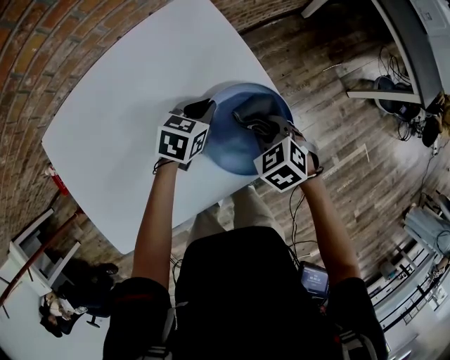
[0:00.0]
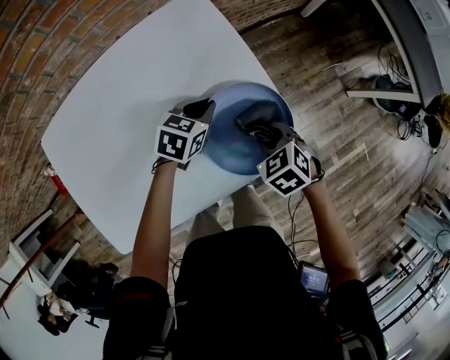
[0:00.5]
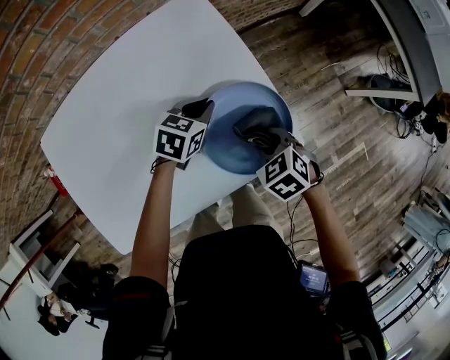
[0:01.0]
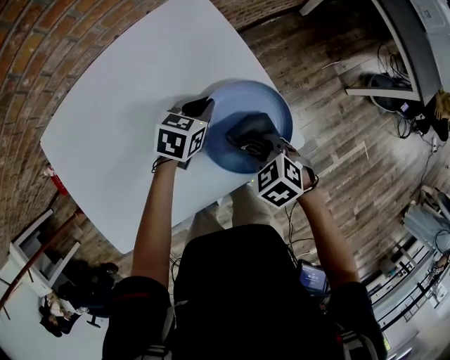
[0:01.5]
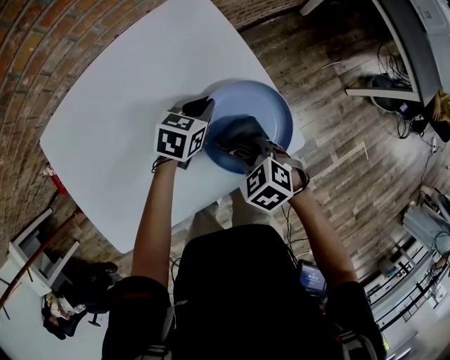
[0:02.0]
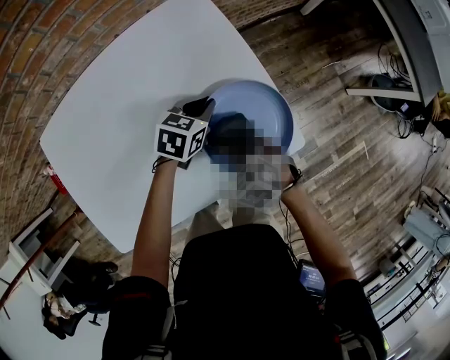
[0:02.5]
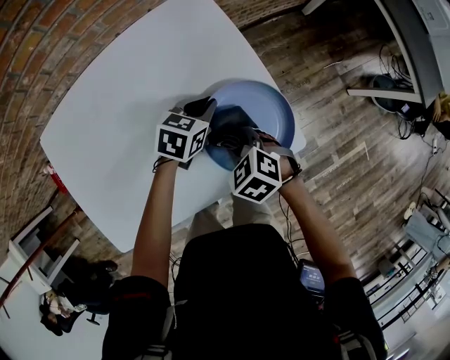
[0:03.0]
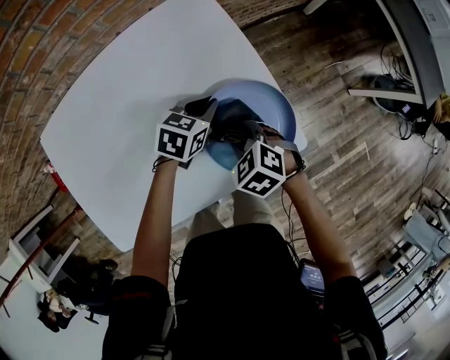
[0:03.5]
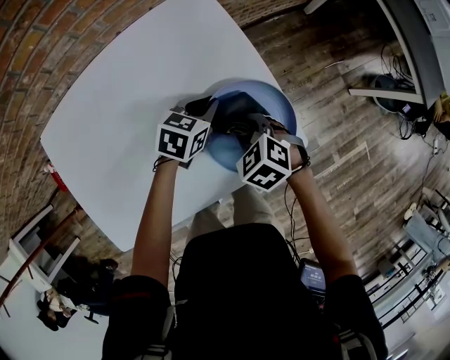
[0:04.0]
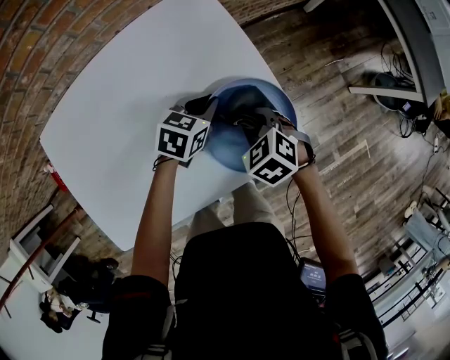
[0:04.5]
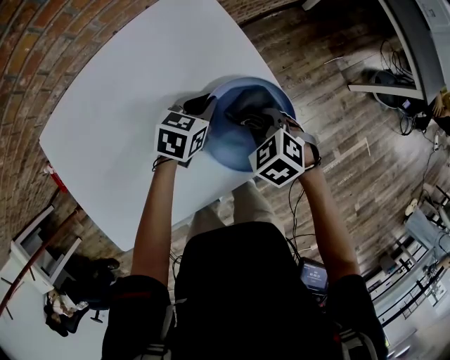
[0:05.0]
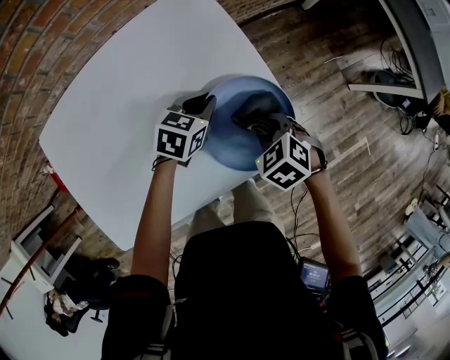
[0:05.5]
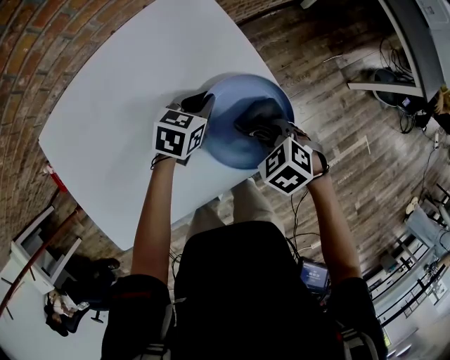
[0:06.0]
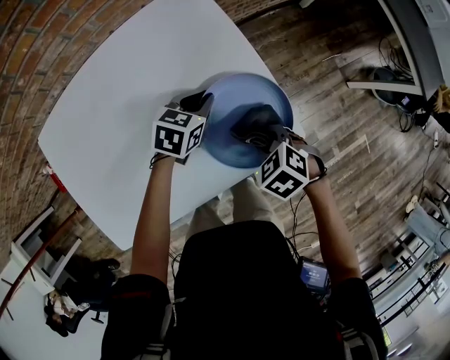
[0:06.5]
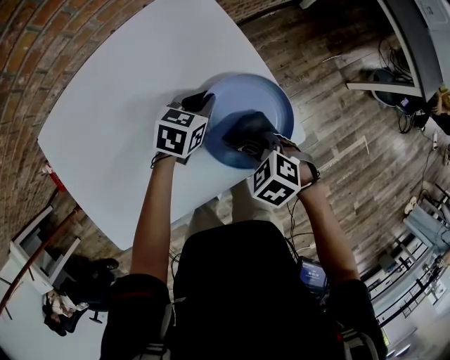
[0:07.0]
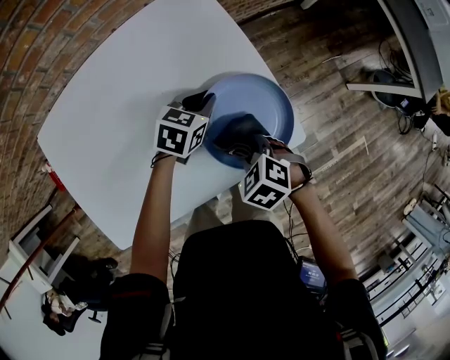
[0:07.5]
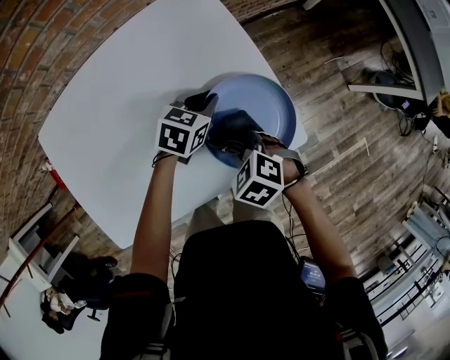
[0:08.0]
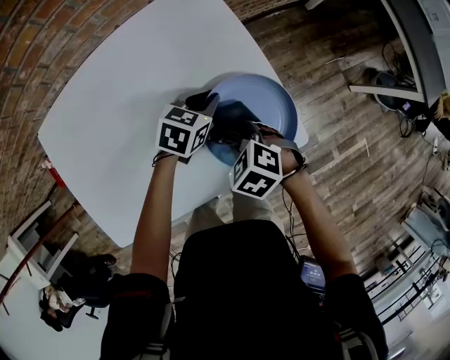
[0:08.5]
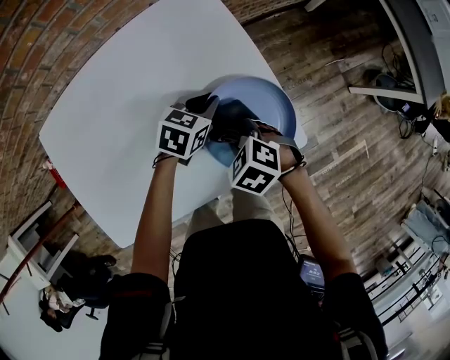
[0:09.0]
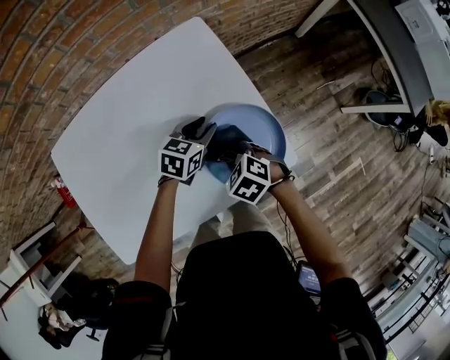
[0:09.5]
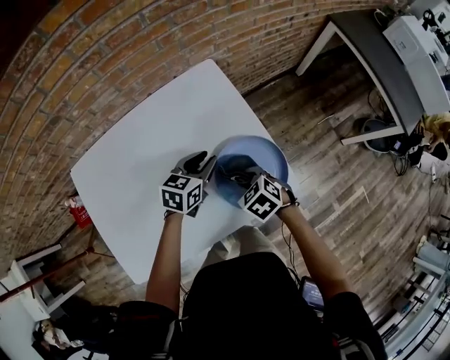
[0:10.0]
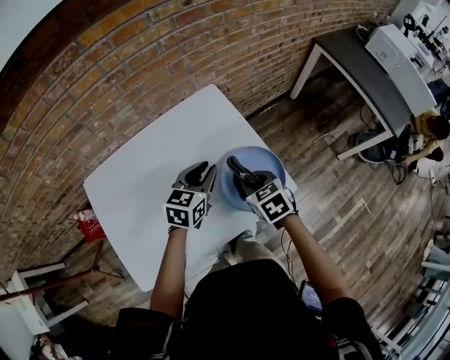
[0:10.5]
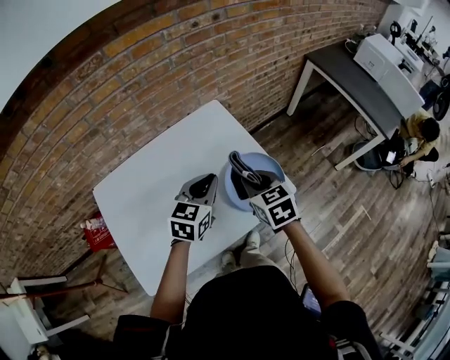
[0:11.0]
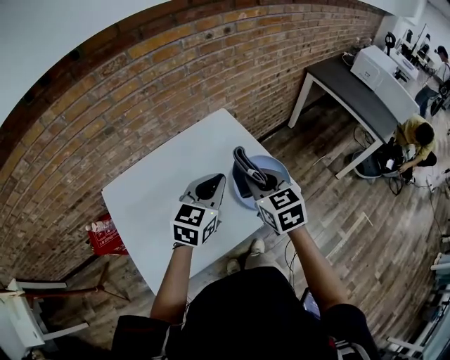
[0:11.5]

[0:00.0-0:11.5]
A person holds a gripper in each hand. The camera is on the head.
0:00.0 to 0:02.0: The right gripper goes some 5 cm backward.
0:02.0 to 0:04.0: The right gripper heads forward, covering about 5 cm.
0:04.0 to 0:06.0: The right gripper is displaced to the right by some 5 cm.
0:06.0 to 0:07.5: The right gripper goes approximately 5 cm to the left.
0:07.5 to 0:09.5: The left gripper opens its fingers. The right gripper shifts by about 5 cm.
0:09.5 to 0:11.5: The left gripper heads upward and backward, covering about 30 cm, swivels about 30 degrees, and closes, while the right gripper travels upward by about 30 cm, and angles its fingers upward, by about 40 degrees.

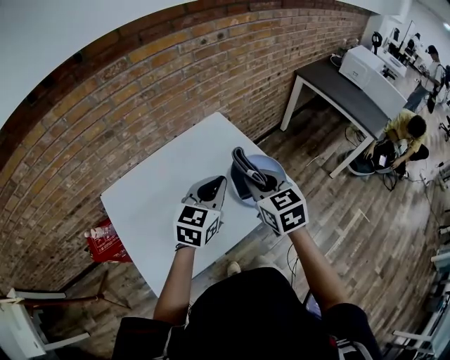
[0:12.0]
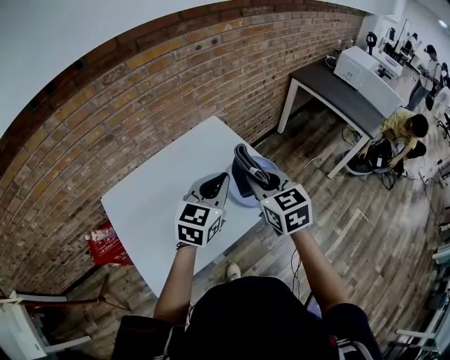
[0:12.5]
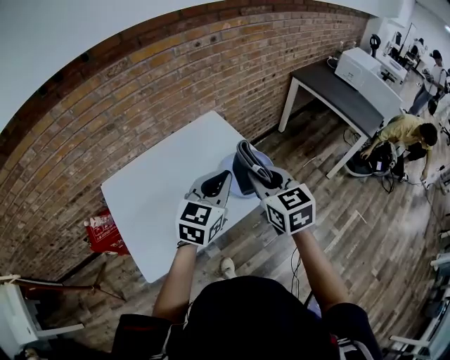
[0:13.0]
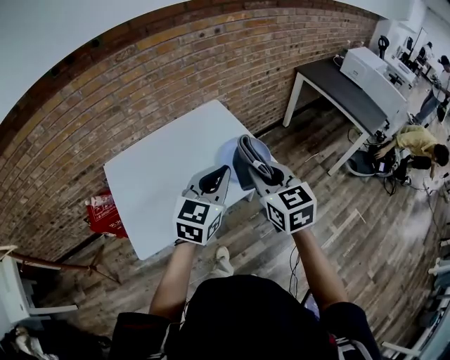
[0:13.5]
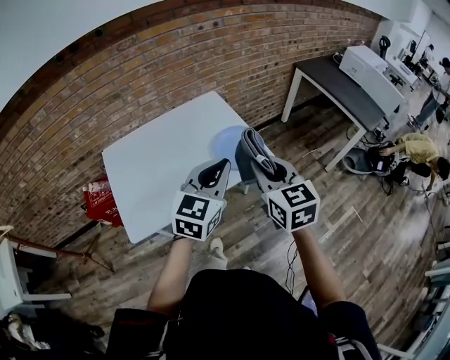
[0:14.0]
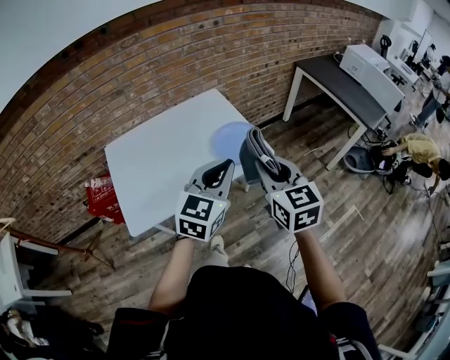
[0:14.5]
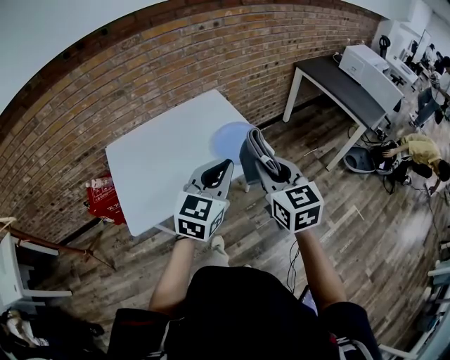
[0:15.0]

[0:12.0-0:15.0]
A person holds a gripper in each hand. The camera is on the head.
0:12.0 to 0:13.5: The two grippers go some 15 cm backward, to the right and upward.
0:13.5 to 0:15.0: The left gripper shifts some 10 cm backward. The right gripper heads backward and to the right, covering roughly 10 cm.

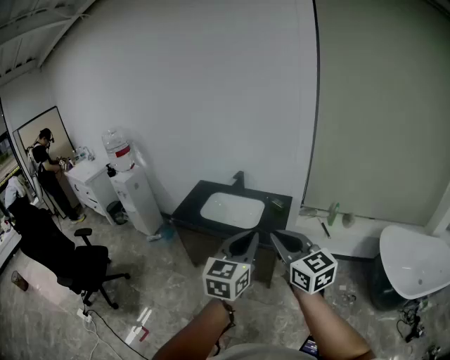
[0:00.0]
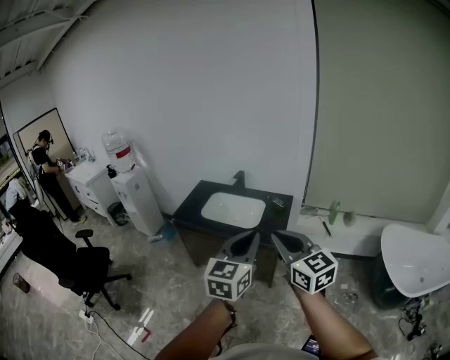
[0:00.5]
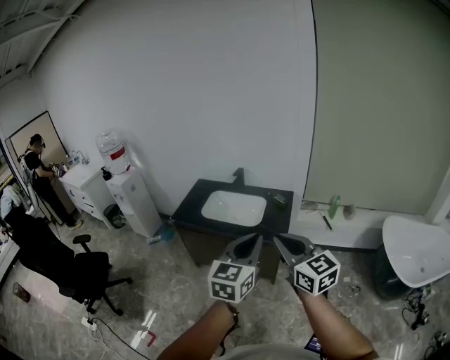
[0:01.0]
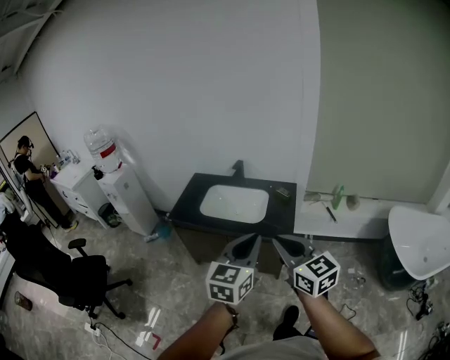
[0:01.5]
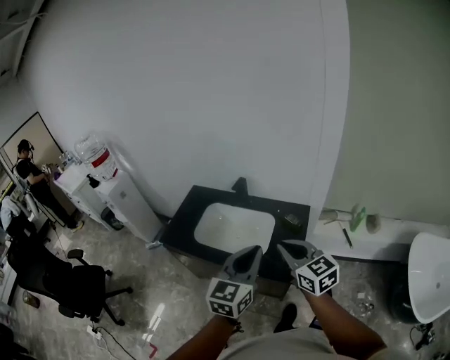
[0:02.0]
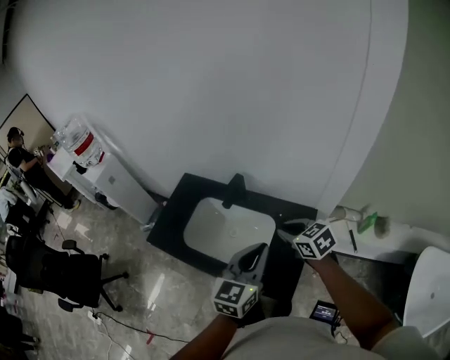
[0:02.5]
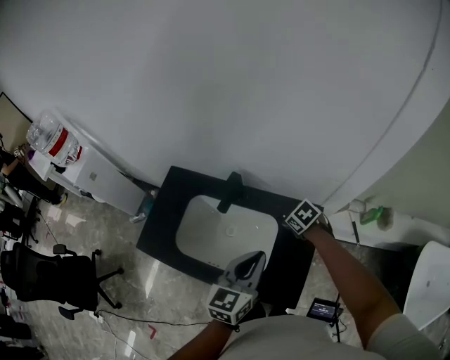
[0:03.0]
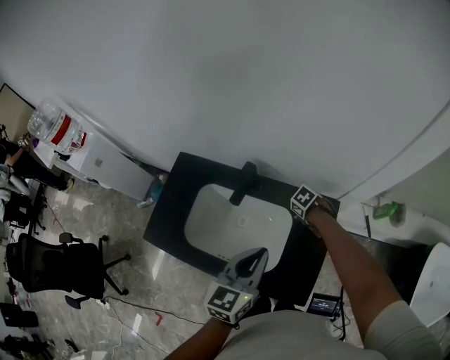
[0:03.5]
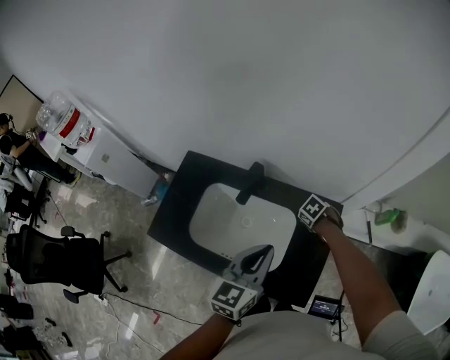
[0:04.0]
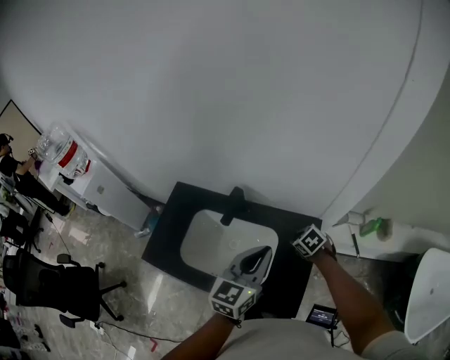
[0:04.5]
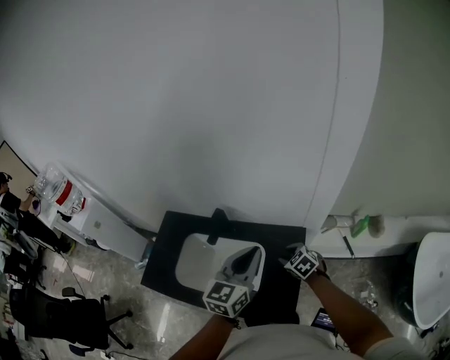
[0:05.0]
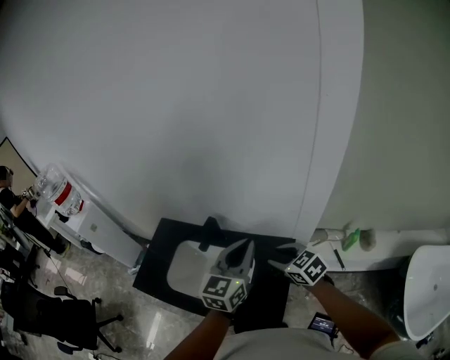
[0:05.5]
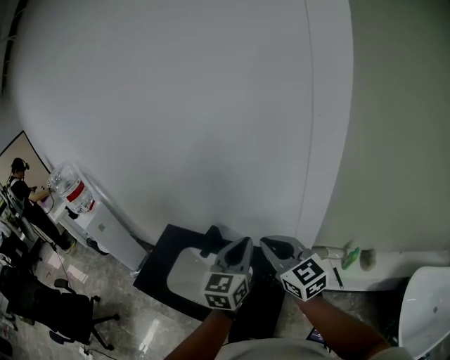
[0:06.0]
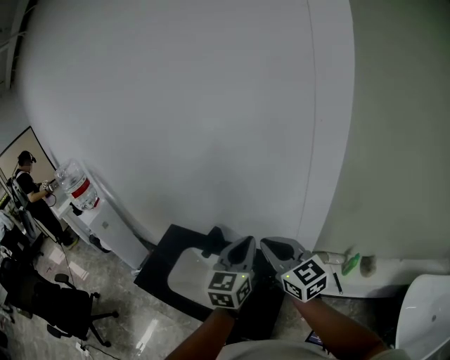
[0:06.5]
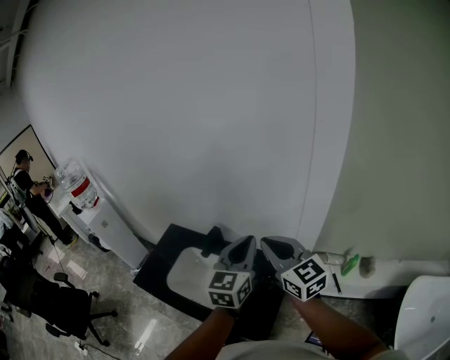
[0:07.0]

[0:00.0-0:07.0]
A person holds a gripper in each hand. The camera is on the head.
0:00.0 to 0:02.0: Both grippers travel together forward, approximately 35 cm.
0:02.0 to 0:03.5: The right gripper goes some 40 cm downward, points its fingers roughly 60 degrees further downward, and opens, while the left gripper shifts by some 35 cm.
0:03.5 to 0:05.0: Both grippers travel together upward, about 10 cm. The right gripper turns by roughly 40 degrees.
0:05.0 to 0:07.0: The right gripper moves upward, some 35 cm, tilts its fingers roughly 50 degrees upward, and closes up. The left gripper moves upward, approximately 10 cm.

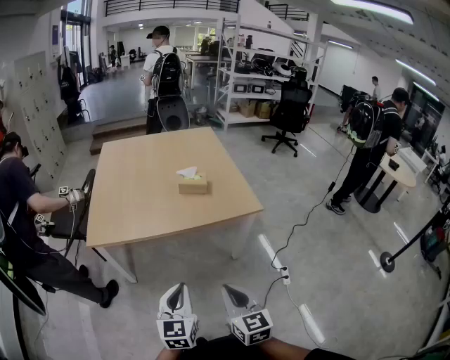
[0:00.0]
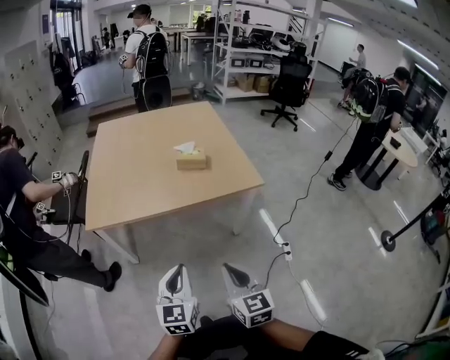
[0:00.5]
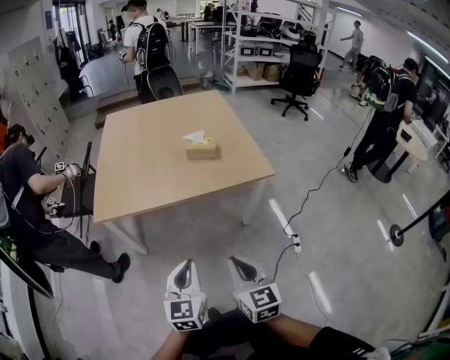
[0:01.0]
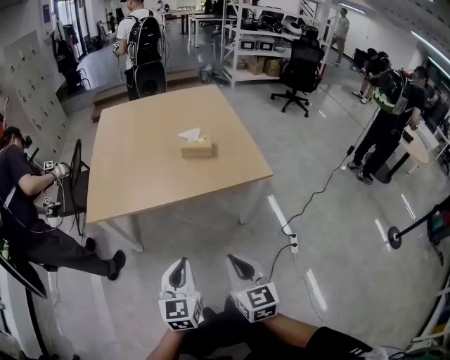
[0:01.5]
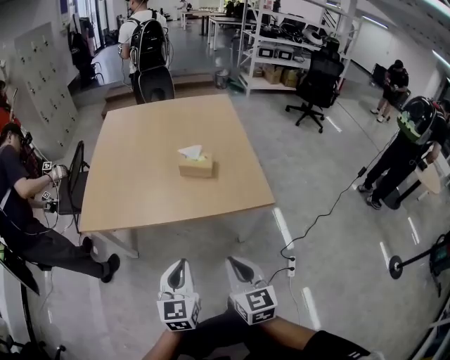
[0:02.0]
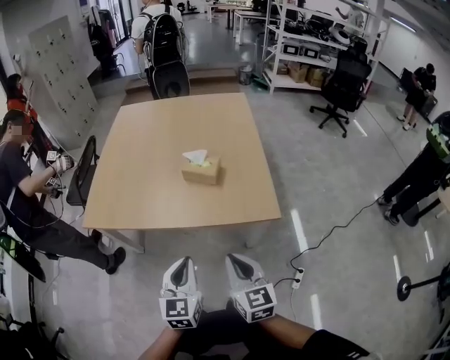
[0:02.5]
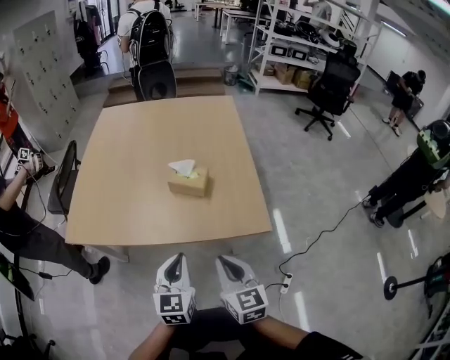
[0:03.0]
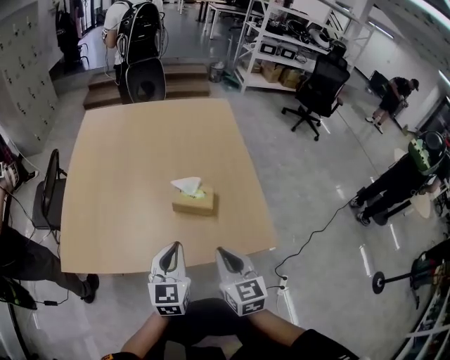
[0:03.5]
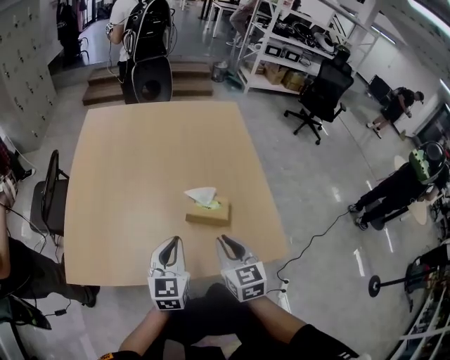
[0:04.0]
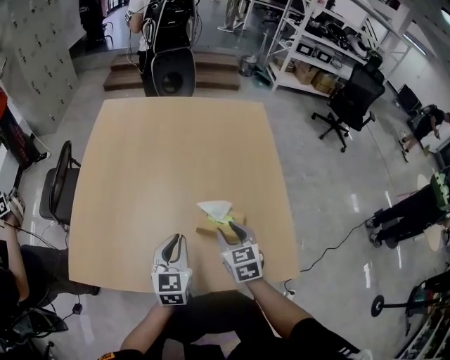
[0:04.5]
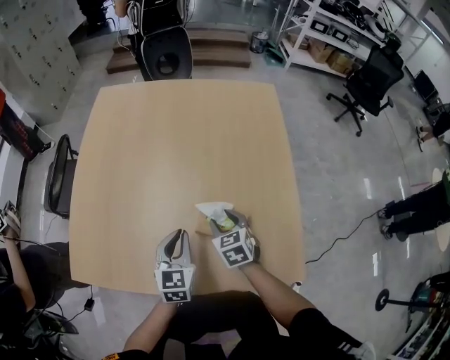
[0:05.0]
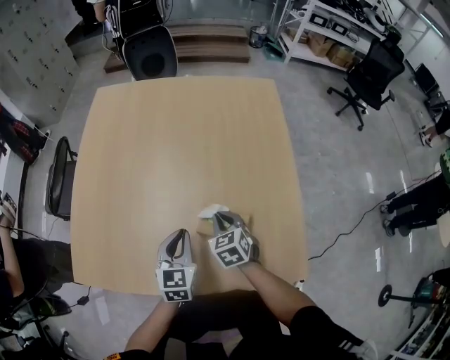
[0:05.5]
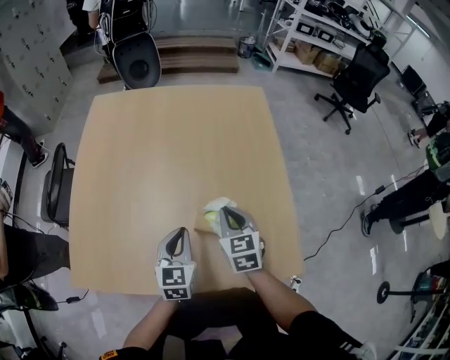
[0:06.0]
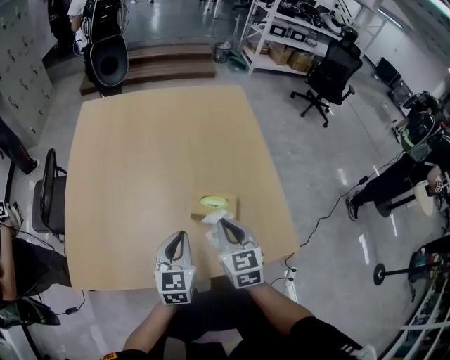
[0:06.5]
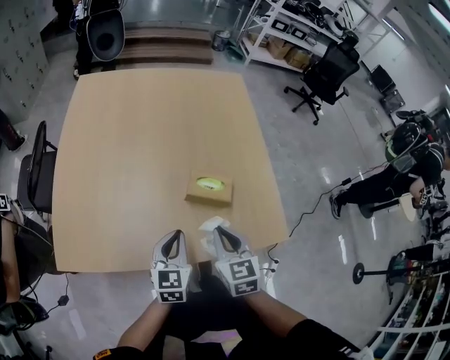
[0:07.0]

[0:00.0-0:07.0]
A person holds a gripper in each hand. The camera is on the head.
0:00.0 to 0:02.0: The two grippers go roughly 15 cm forward and to the right.
0:02.0 to 0:03.5: The two grippers go approximately 25 cm forward.
0:03.5 to 0:05.0: The left gripper shifts approximately 15 cm forward and downward; the right gripper shifts roughly 30 cm forward and downward, changes its angle by approximately 30 degrees, and opens up.
0:05.0 to 0:07.0: The right gripper goes approximately 20 cm backward and upward, and closes; the left gripper travels backward by about 10 cm.
